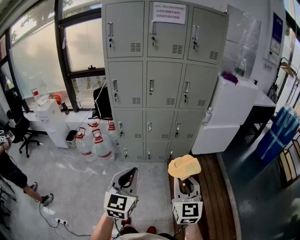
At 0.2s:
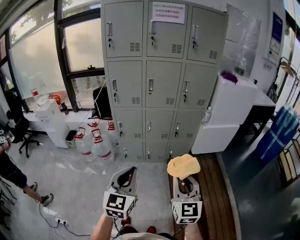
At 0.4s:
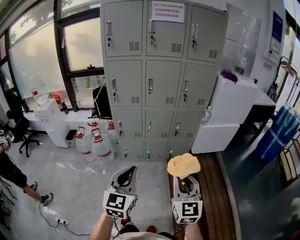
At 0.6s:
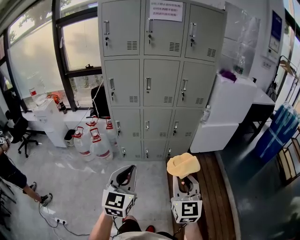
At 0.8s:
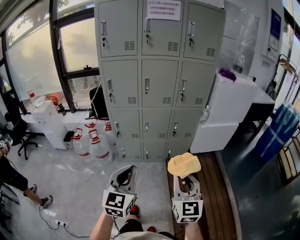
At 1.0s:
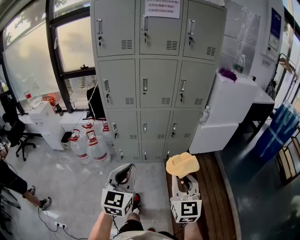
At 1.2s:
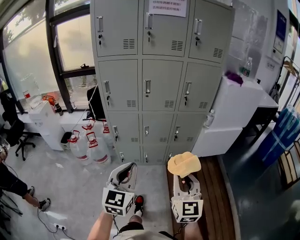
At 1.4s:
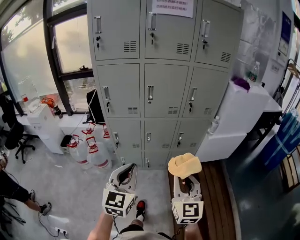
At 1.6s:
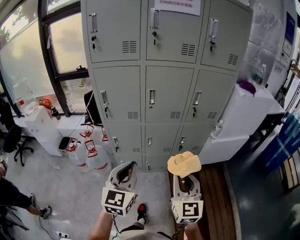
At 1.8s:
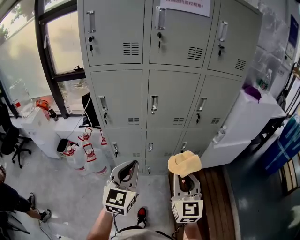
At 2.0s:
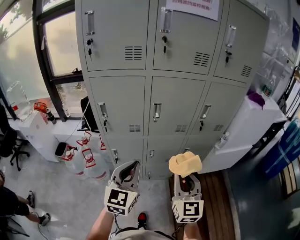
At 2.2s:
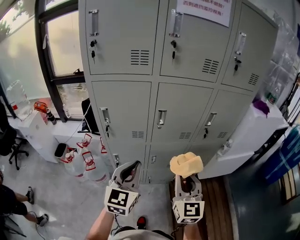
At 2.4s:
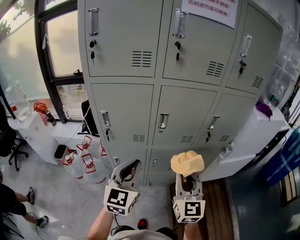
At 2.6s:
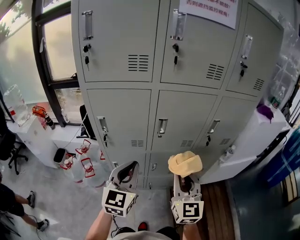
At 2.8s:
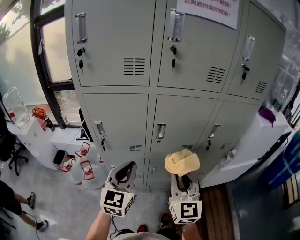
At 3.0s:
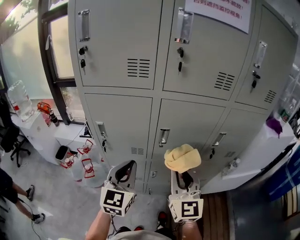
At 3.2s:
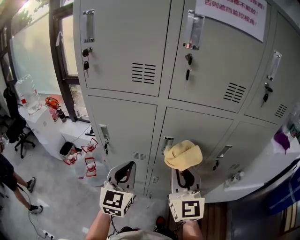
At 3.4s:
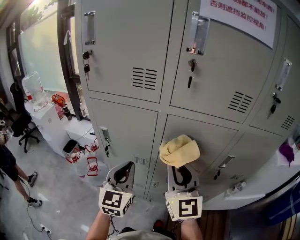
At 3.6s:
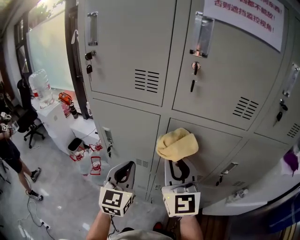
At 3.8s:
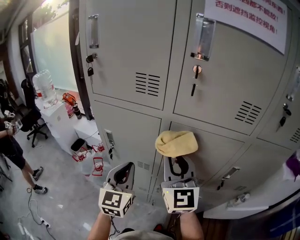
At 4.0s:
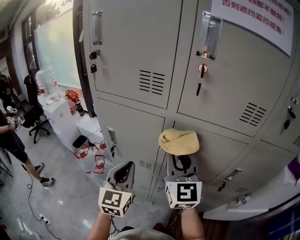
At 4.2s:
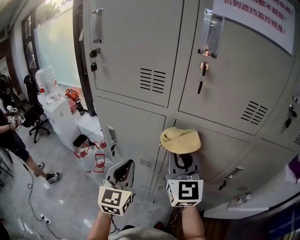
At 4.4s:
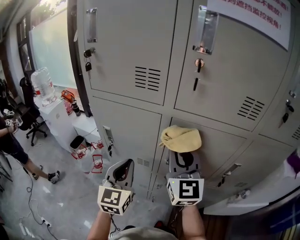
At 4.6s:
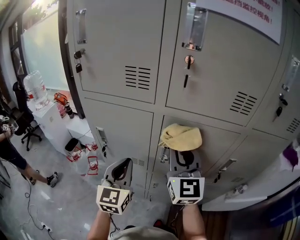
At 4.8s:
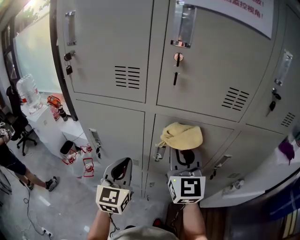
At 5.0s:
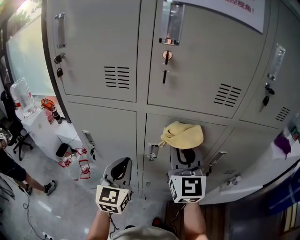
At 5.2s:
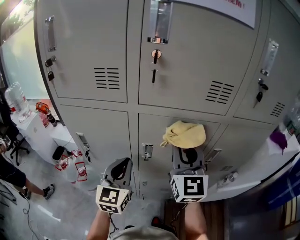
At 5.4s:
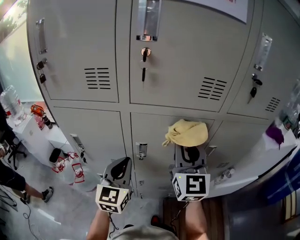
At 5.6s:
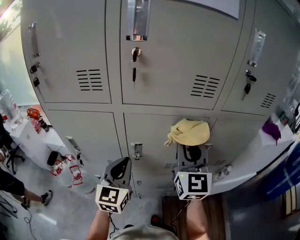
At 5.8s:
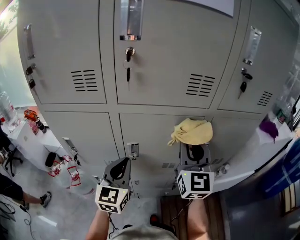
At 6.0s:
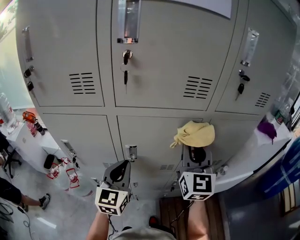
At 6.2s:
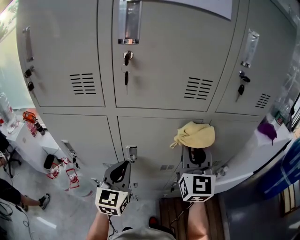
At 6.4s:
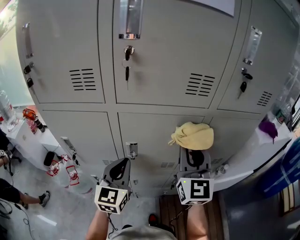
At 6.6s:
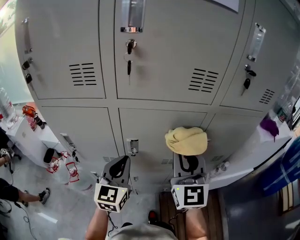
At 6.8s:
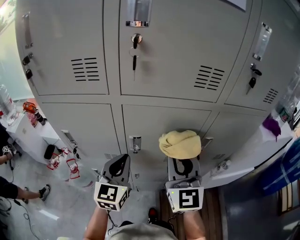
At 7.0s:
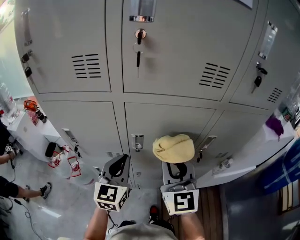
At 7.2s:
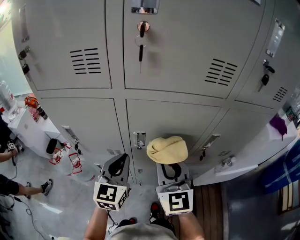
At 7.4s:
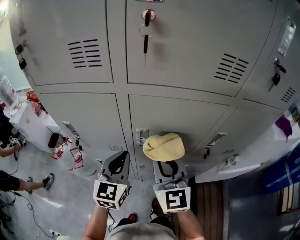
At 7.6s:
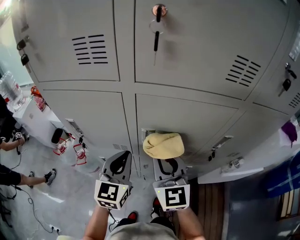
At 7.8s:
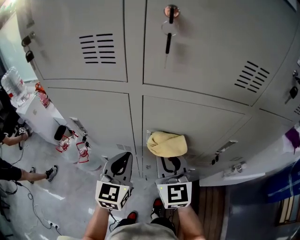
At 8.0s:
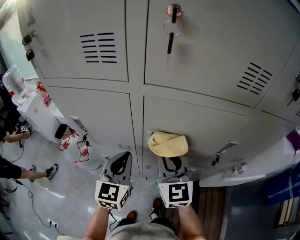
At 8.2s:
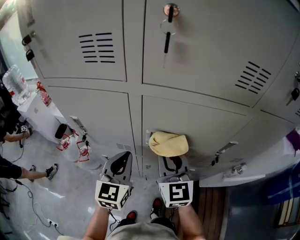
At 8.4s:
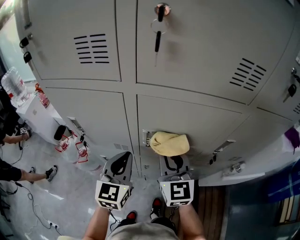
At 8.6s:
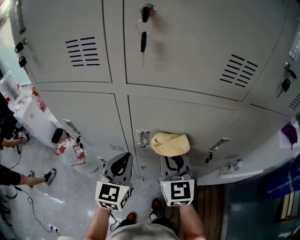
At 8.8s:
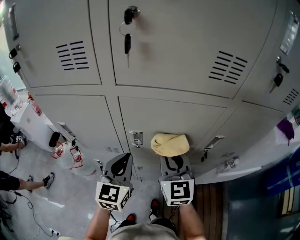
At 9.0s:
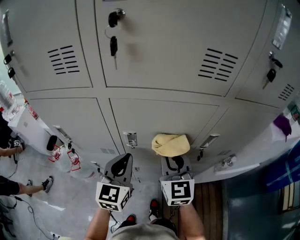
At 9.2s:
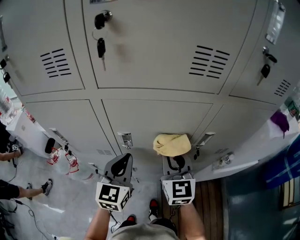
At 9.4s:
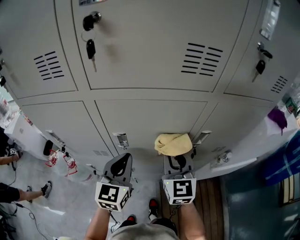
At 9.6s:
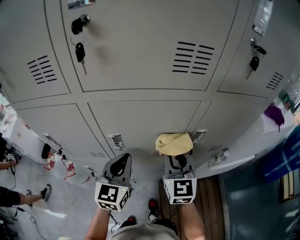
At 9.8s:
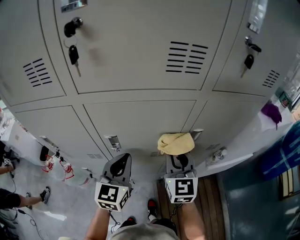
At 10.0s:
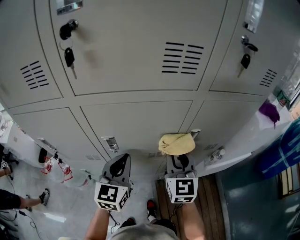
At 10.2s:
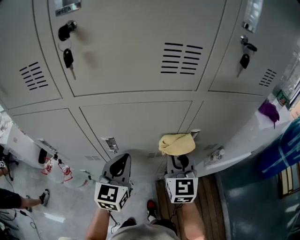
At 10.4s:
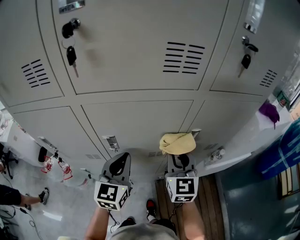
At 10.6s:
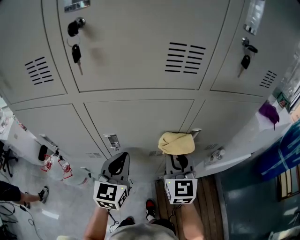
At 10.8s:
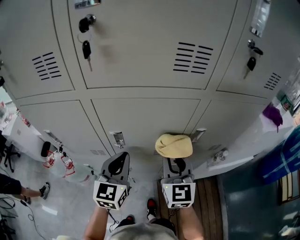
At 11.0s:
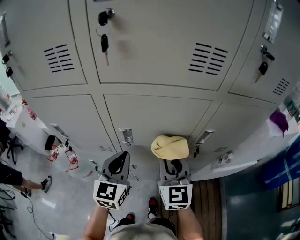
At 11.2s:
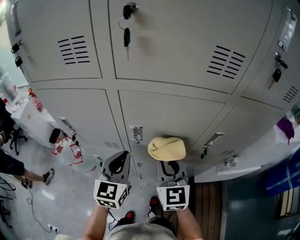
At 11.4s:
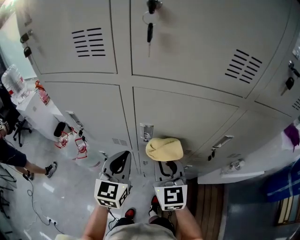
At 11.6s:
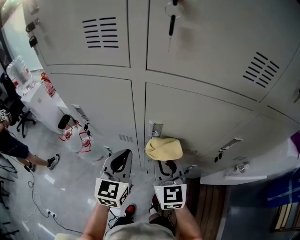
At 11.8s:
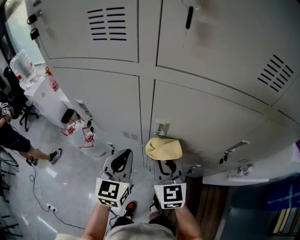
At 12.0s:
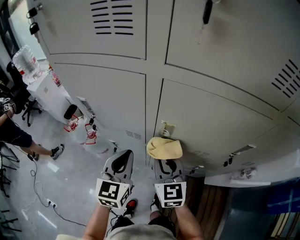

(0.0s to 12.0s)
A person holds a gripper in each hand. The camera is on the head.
0.0s - 1.6s: Both grippers move forward, approximately 25 cm.
1.6s - 3.0s: The grippers both shift forward by roughly 25 cm.
3.0s - 4.4s: The right gripper goes roughly 15 cm forward and upward, while the left gripper moves forward, some 5 cm.
4.4s - 6.0s: The right gripper moves to the right, approximately 20 cm, and swivels approximately 30 degrees. Meanwhile the left gripper shifts some 15 cm to the right.
6.0s - 7.6s: The right gripper moves to the left and downward, about 20 cm, and turns by roughly 20 degrees; the left gripper ends up about 5 cm from where it was.
7.6s - 9.0s: The right gripper heads to the right, covering some 10 cm; the left gripper heads to the right, covering about 5 cm.
9.0s - 10.4s: The right gripper goes some 10 cm to the right, while the left gripper is displaced to the right by about 5 cm.
10.4s - 12.0s: Both grippers move to the left, approximately 20 cm. The left gripper rotates about 20 degrees. Meanwhile the right gripper changes its angle by about 30 degrees.

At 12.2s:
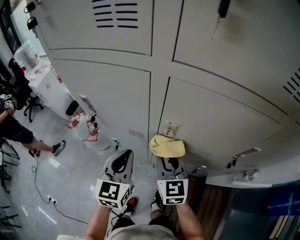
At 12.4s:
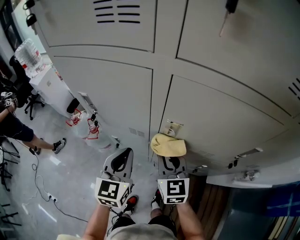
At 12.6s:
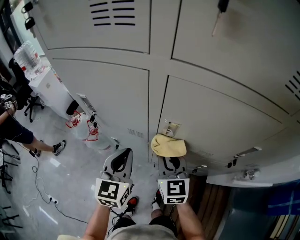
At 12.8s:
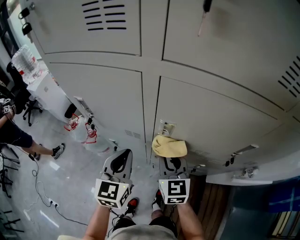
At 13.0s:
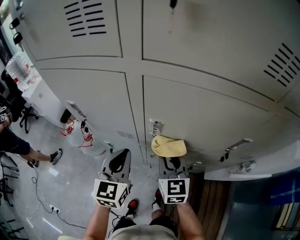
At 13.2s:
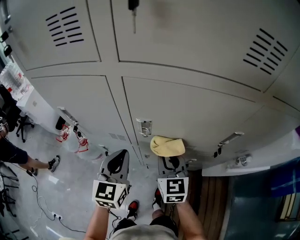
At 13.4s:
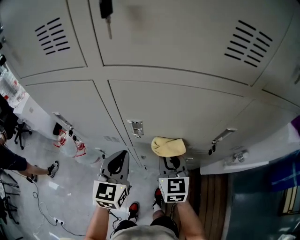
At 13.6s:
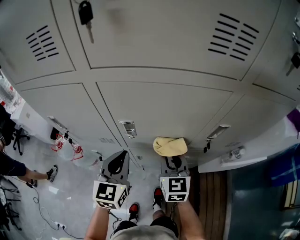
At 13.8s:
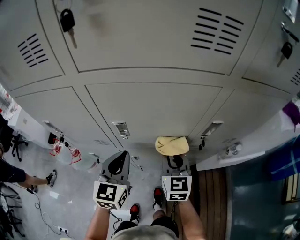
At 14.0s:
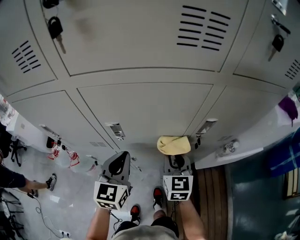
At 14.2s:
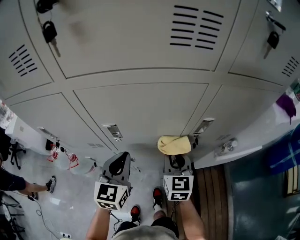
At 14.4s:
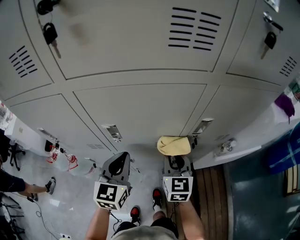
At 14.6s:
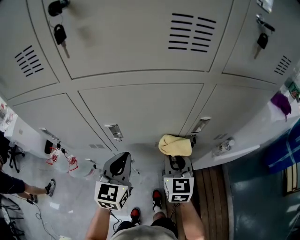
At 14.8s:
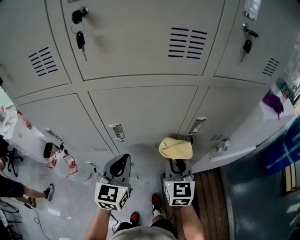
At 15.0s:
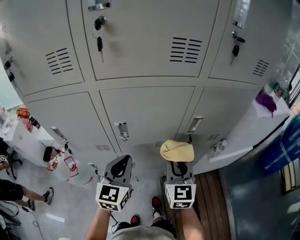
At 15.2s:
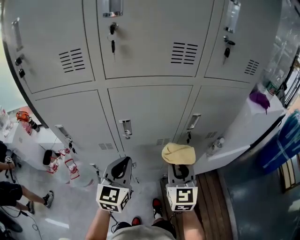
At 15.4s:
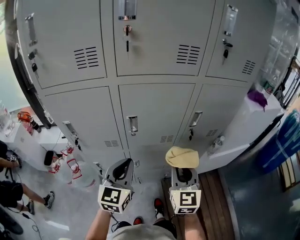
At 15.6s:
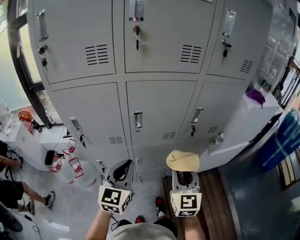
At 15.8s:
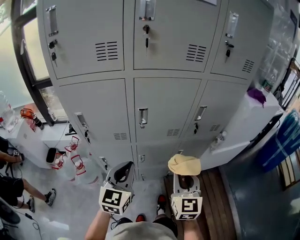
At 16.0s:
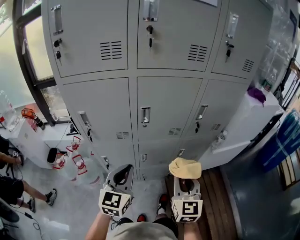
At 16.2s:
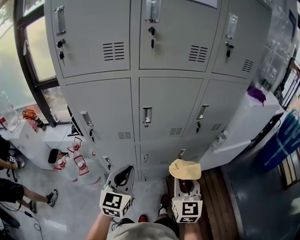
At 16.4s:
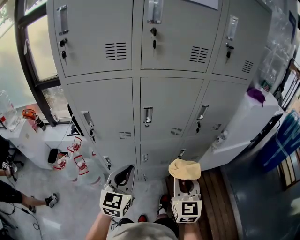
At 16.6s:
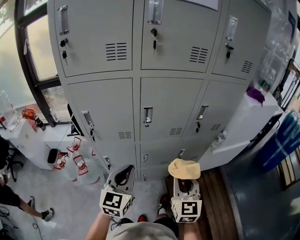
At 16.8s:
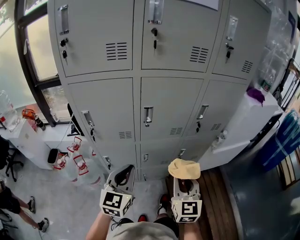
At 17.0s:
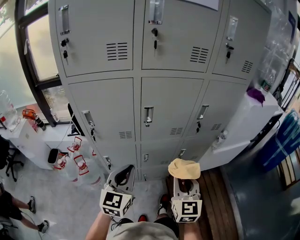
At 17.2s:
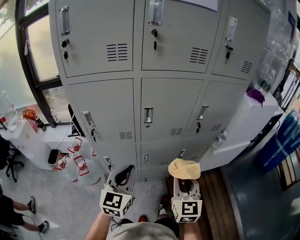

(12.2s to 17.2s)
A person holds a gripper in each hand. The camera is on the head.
12.2s - 13.8s: Both grippers move to the right, some 15 cm. The right gripper turns by about 20 degrees.
13.8s - 15.6s: The grippers both shift backward and upward by about 20 cm.
15.6s - 17.2s: Both grippers travel together backward, about 5 cm.

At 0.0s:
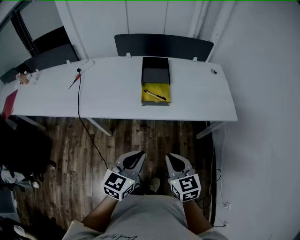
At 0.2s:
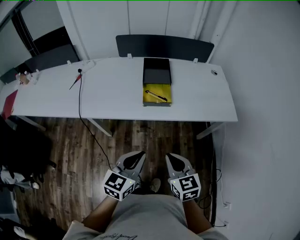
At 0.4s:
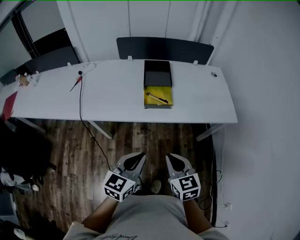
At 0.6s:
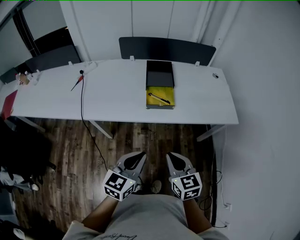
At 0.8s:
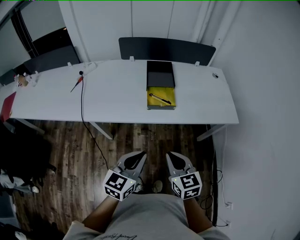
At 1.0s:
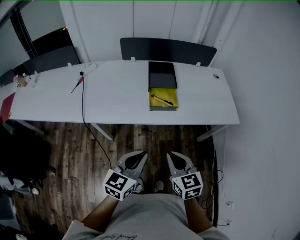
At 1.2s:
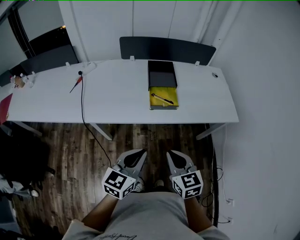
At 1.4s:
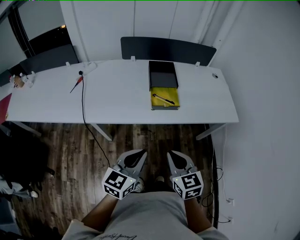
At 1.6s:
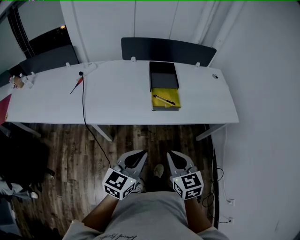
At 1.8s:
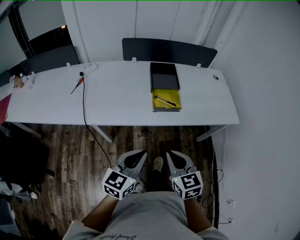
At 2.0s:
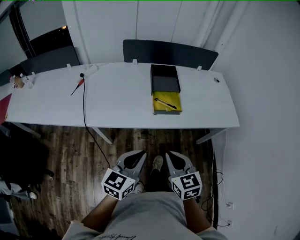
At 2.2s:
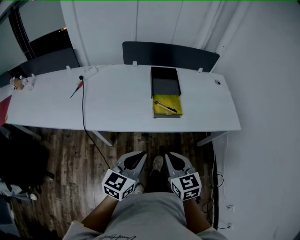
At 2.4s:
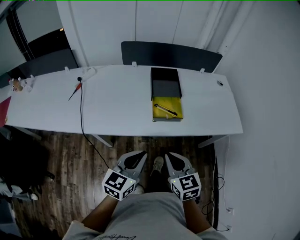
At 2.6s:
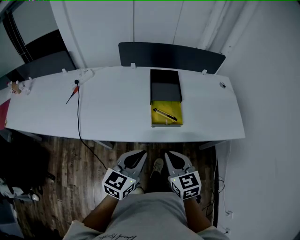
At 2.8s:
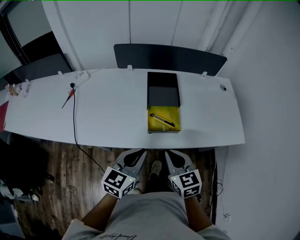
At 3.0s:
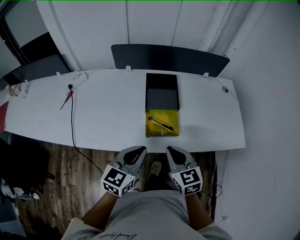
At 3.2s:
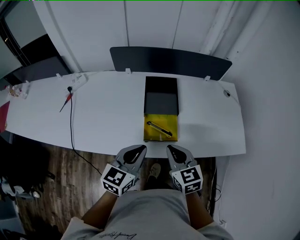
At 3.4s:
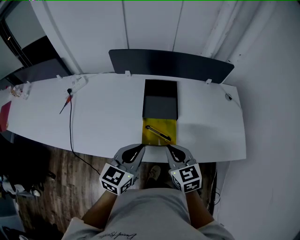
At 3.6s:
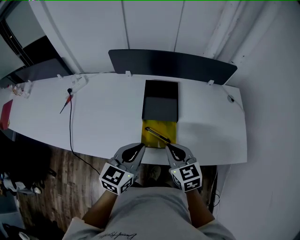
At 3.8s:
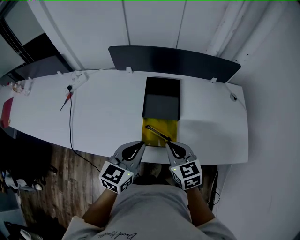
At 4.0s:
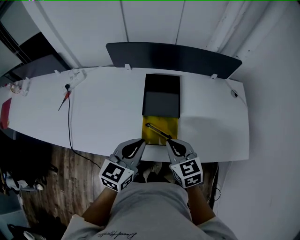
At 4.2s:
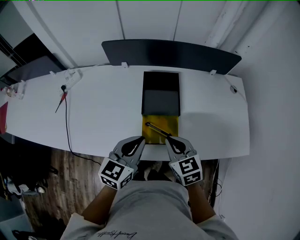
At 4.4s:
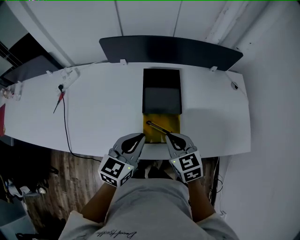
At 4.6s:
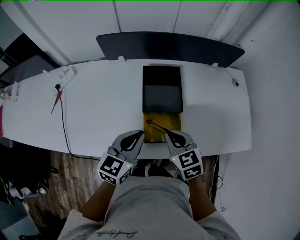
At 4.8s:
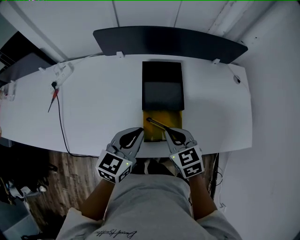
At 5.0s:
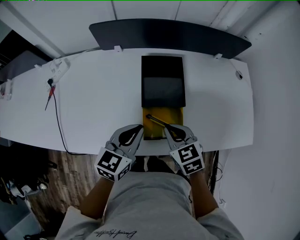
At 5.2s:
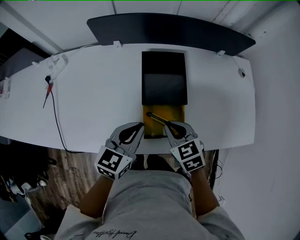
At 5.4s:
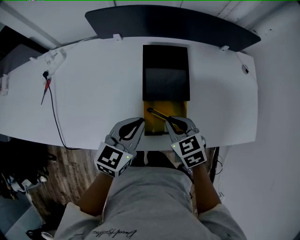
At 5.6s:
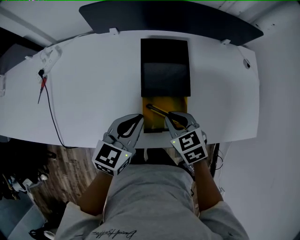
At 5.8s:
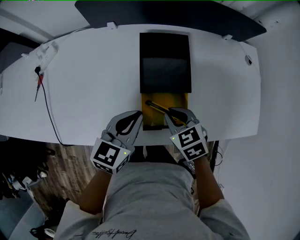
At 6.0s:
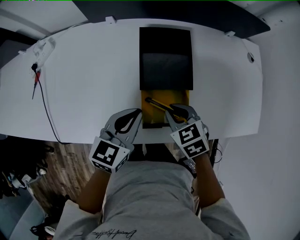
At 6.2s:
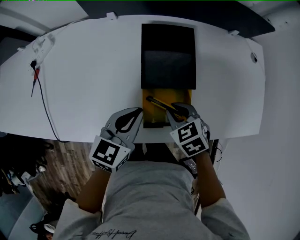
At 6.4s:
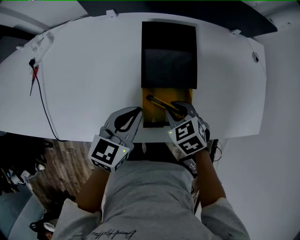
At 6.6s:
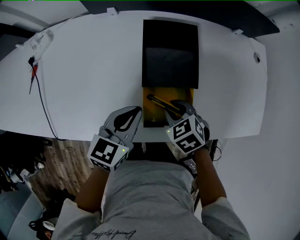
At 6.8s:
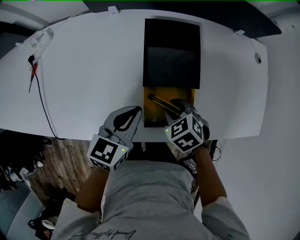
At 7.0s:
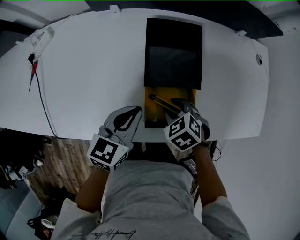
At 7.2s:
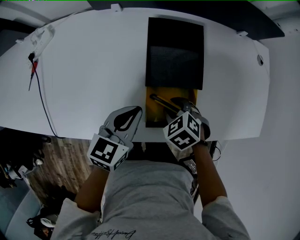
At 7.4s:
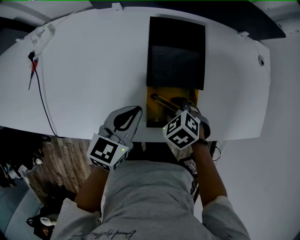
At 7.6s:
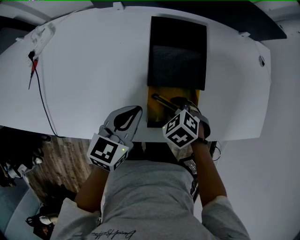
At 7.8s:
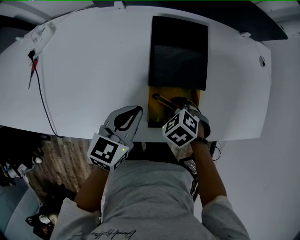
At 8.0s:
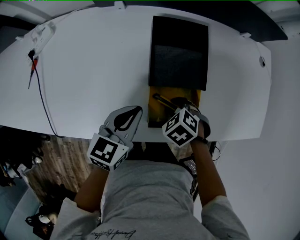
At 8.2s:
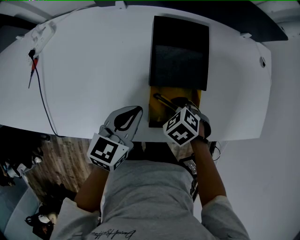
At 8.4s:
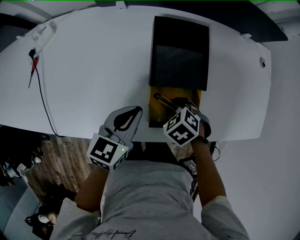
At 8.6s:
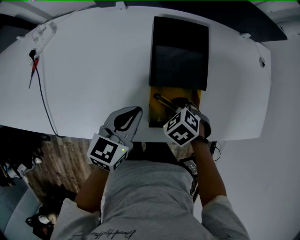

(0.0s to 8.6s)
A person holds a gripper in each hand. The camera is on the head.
0.0s - 1.4s: Both grippers move to the left, about 10 cm.
1.4s - 2.8s: Both grippers move forward, approximately 20 cm.
2.8s - 4.4s: Both grippers move forward, approximately 15 cm.
4.4s - 5.8s: The left gripper goes about 10 cm downward and forward. Meanwhile the right gripper moves downward, about 10 cm.
5.8s - 7.2s: The right gripper travels downward by about 10 cm, rotates about 20 degrees, and opens.
7.2s - 8.6s: The grippers move only a little.
